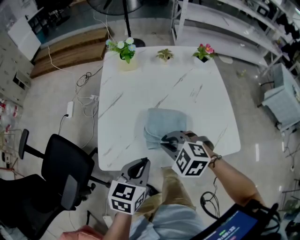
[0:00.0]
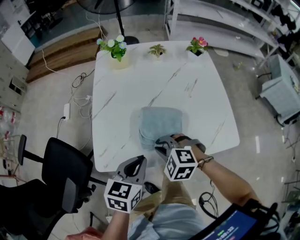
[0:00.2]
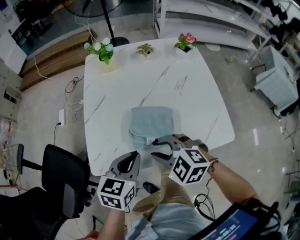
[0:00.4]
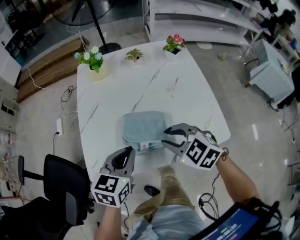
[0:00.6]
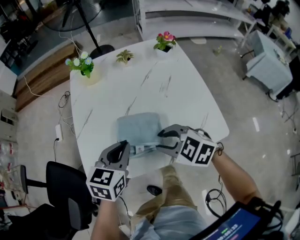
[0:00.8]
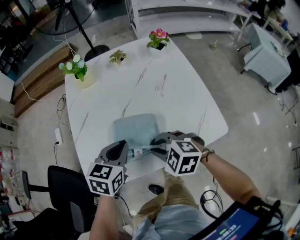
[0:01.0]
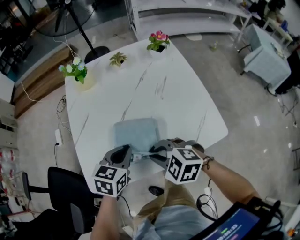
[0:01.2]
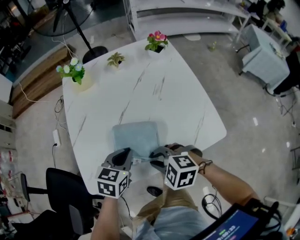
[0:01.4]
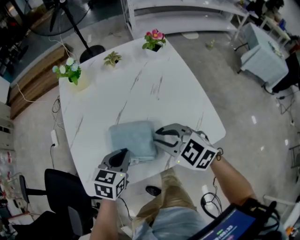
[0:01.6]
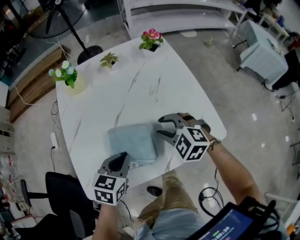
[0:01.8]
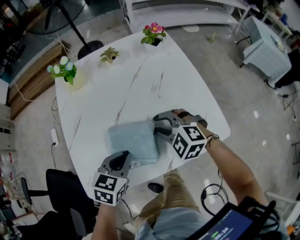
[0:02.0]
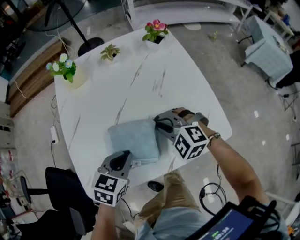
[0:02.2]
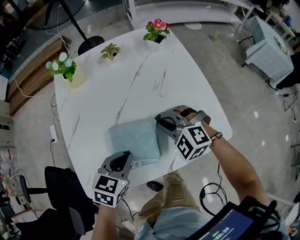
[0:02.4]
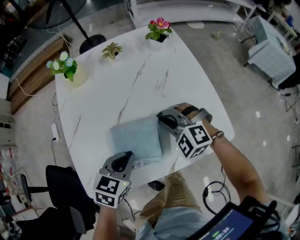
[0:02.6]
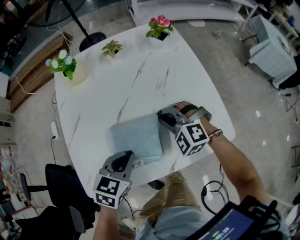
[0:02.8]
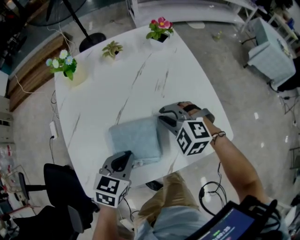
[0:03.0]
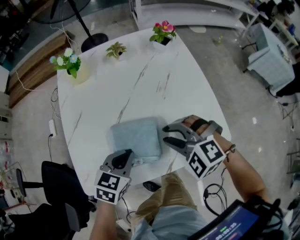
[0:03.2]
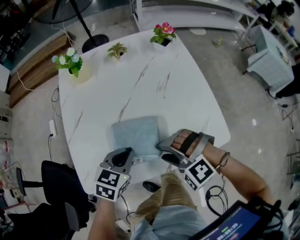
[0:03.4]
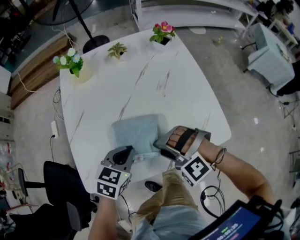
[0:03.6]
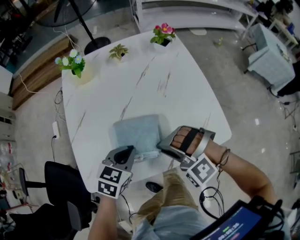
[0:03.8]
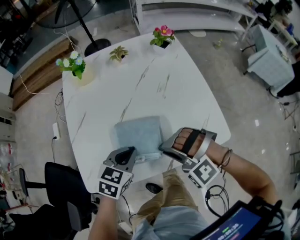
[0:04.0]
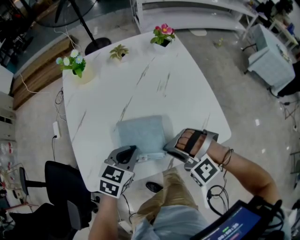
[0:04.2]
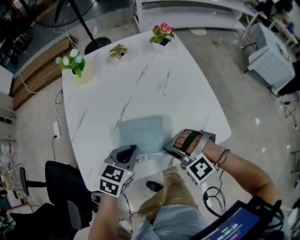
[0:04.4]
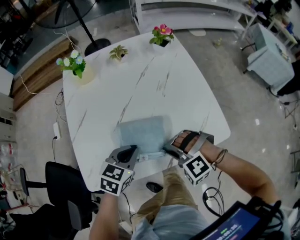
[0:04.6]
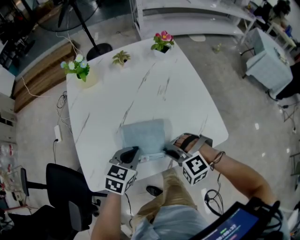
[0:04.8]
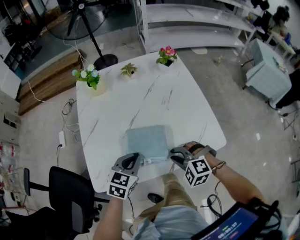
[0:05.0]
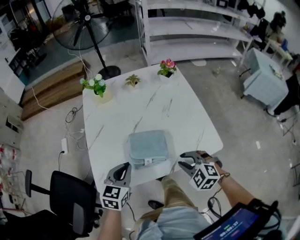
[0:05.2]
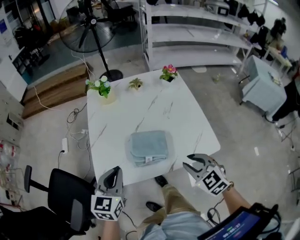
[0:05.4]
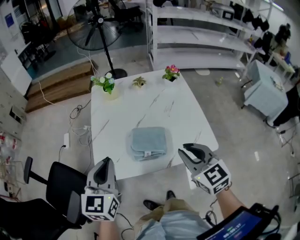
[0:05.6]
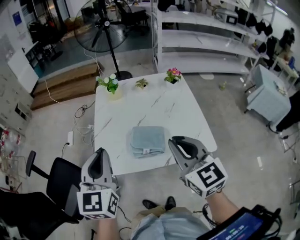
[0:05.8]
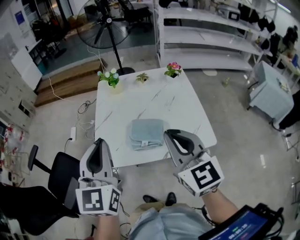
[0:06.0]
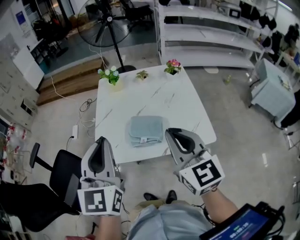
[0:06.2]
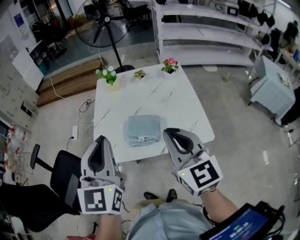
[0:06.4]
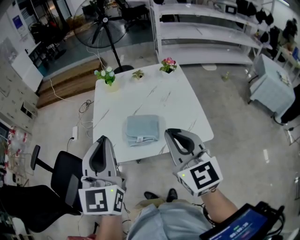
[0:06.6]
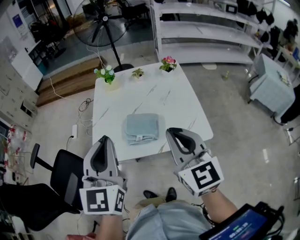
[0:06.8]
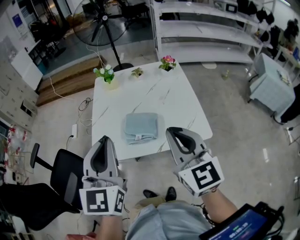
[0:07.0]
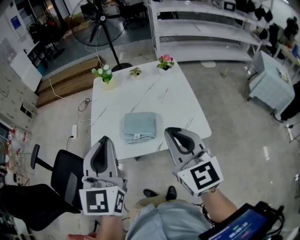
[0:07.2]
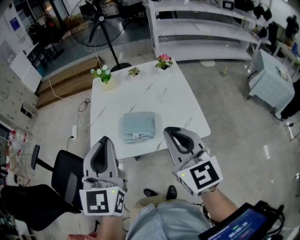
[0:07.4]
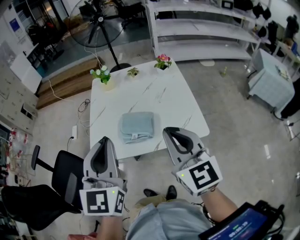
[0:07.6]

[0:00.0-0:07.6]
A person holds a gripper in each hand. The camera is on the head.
0:00.0 to 0:01.6: The right gripper shifts approximately 10 cm to the right, and turns by some 30 degrees; the left gripper goes about 10 cm forward, to the right and downward.
0:01.6 to 0:03.0: The right gripper goes approximately 10 cm forward and downward, and turns by some 30 degrees.
0:03.0 to 0:04.6: The right gripper shifts approximately 15 cm backward, rotates about 30 degrees, and opens, then closes again.
0:04.6 to 0:06.0: Both grippers travel together upward, approximately 35 cm. The left gripper tips its fingers upward by approximately 40 degrees. The right gripper tips its fingers upward by approximately 50 degrees, and opens, then closes again.
0:06.0 to 0:07.6: The grippers both shift to the right by approximately 5 cm.

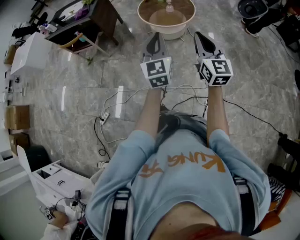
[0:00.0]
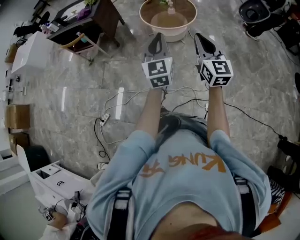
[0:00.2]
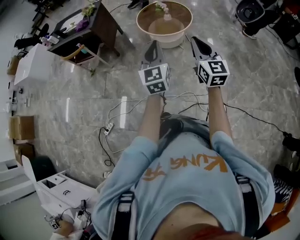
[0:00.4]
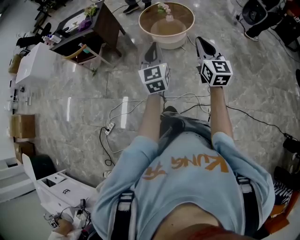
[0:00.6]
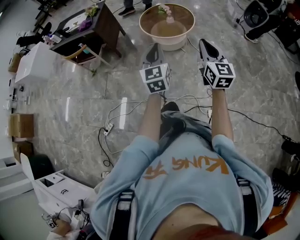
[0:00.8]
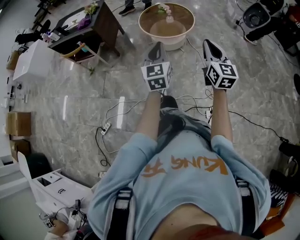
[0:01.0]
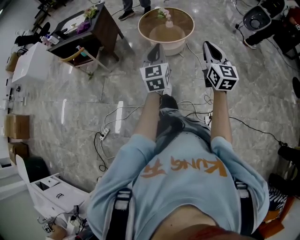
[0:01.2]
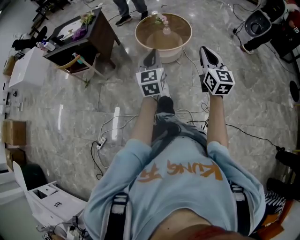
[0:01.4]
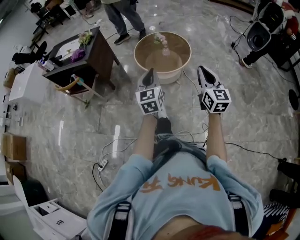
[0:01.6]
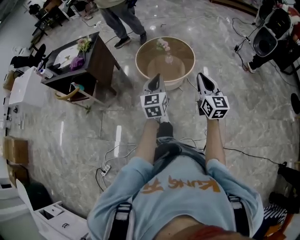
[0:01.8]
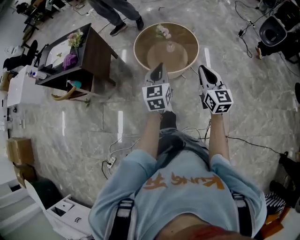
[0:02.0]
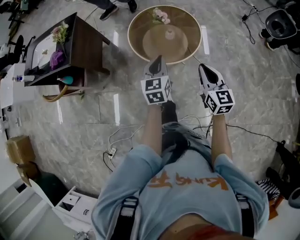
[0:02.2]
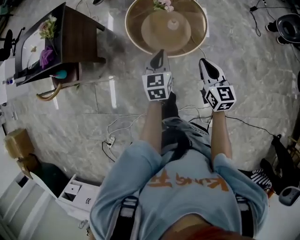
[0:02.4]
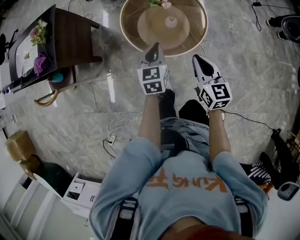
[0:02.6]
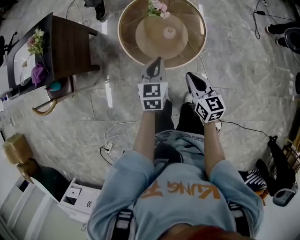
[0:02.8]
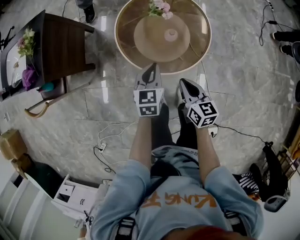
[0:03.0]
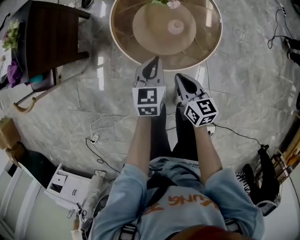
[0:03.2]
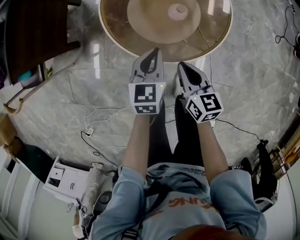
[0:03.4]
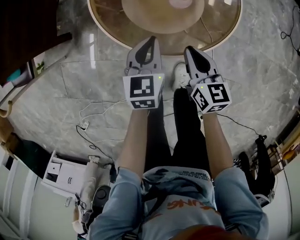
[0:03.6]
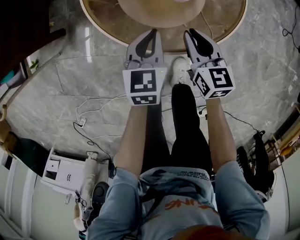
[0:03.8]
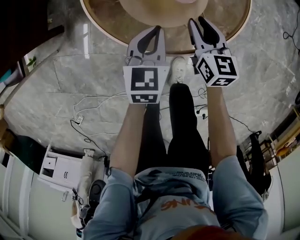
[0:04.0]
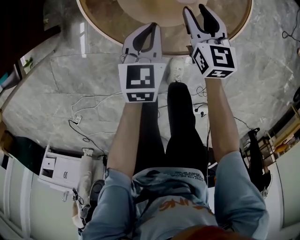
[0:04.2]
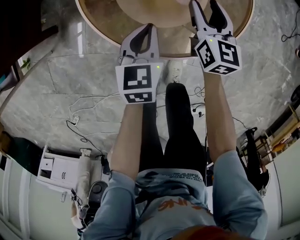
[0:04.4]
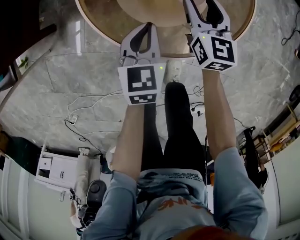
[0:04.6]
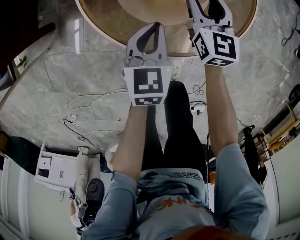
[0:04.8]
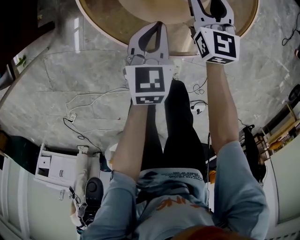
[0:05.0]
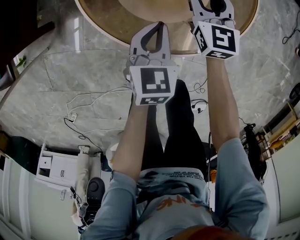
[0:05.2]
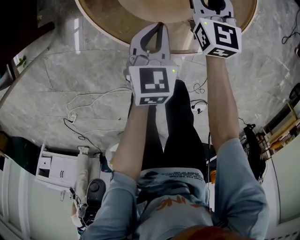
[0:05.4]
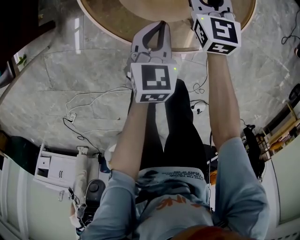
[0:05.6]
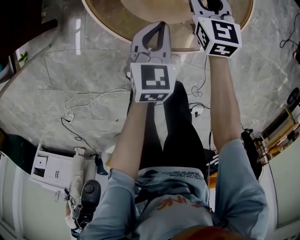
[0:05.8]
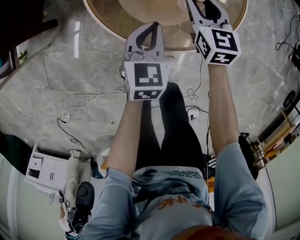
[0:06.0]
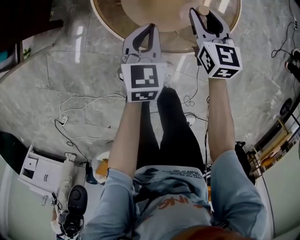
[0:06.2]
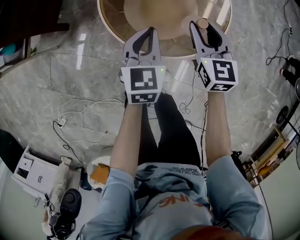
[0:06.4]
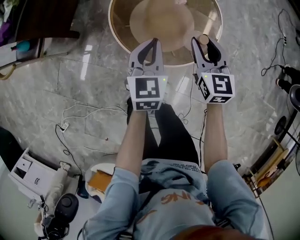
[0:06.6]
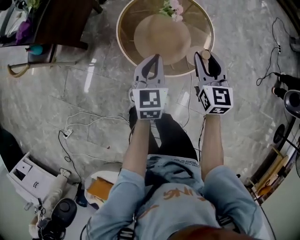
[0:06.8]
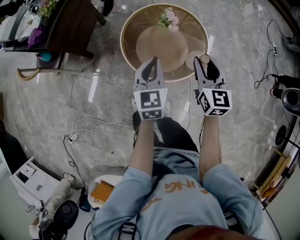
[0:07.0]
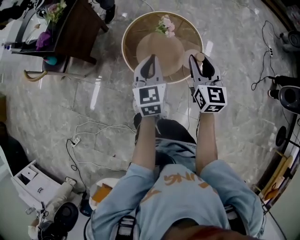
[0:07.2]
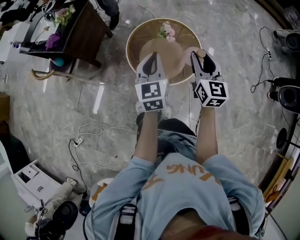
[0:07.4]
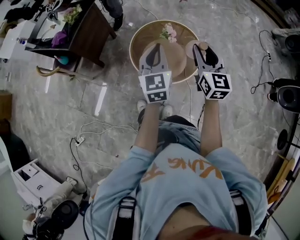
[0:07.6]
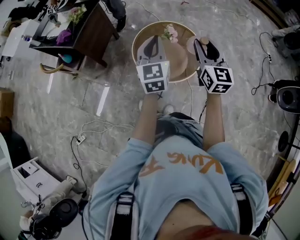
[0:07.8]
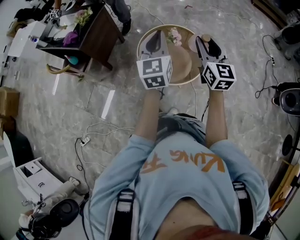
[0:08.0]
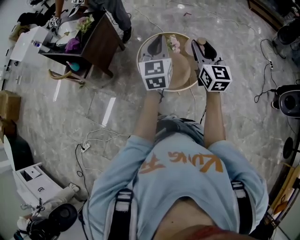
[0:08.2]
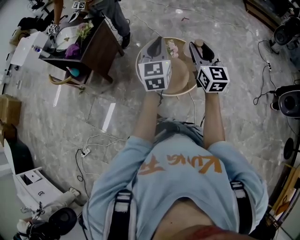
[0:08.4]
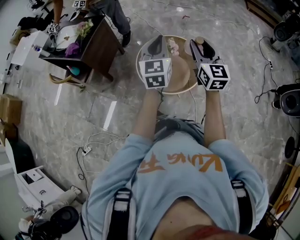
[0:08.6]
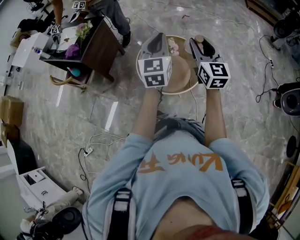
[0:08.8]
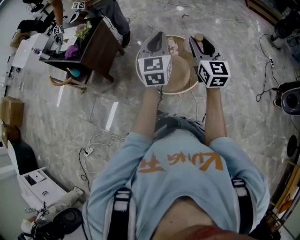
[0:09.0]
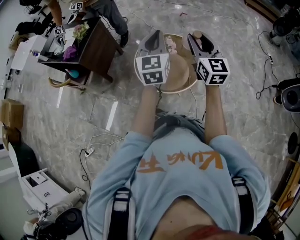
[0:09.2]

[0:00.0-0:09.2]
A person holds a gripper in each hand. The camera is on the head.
0:00.0 to 0:01.6: Both grippers travel together forward, about 20 cm.
0:01.6 to 0:03.0: The two grippers go about 50 cm forward and downward. The left gripper changes its angle by roughly 30 degrees. Meanwhile the right gripper turns by some 40 degrees.
0:03.0 to 0:04.6: The left gripper moves downward, some 25 cm. Meanwhile the right gripper shifts approximately 35 cm forward and downward, changes its angle by some 20 degrees, and opens.
0:04.6 to 0:06.2: The left gripper shifts some 5 cm upward. The right gripper heads upward and backward, covering some 10 cm.
0:06.2 to 0:07.6: Both grippers move upward, about 50 cm. The right gripper changes its angle by about 20 degrees. The left gripper swivels about 30 degrees.
0:07.6 to 0:09.2: Both grippers move upward, approximately 10 cm.

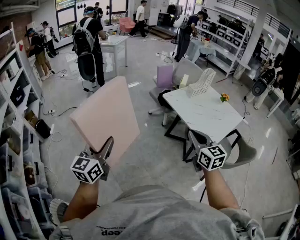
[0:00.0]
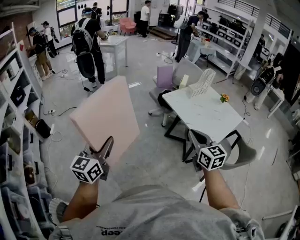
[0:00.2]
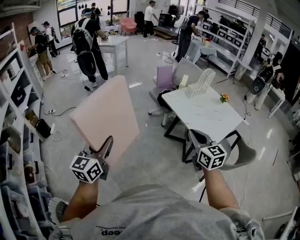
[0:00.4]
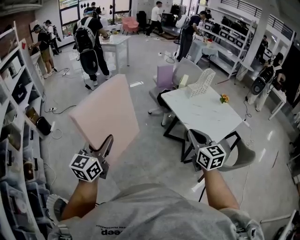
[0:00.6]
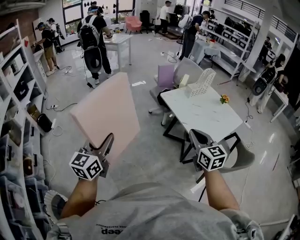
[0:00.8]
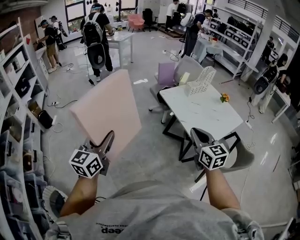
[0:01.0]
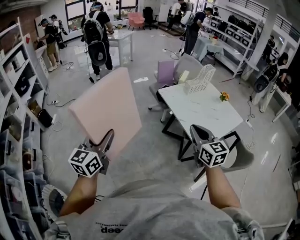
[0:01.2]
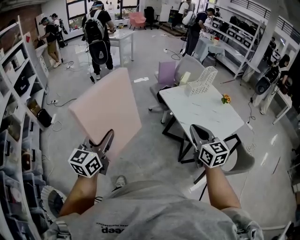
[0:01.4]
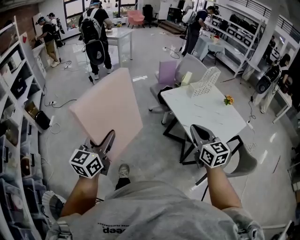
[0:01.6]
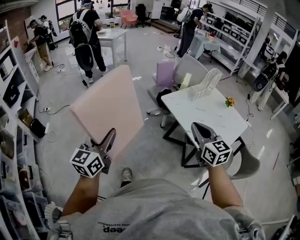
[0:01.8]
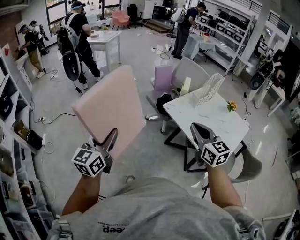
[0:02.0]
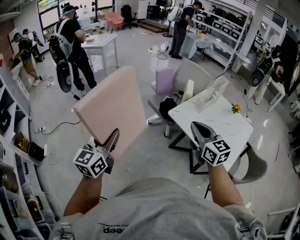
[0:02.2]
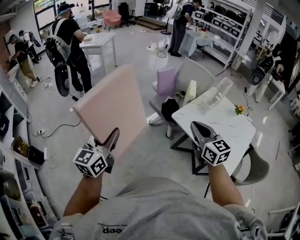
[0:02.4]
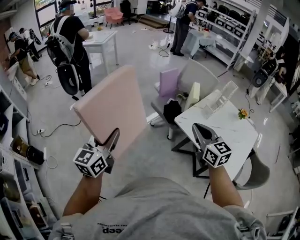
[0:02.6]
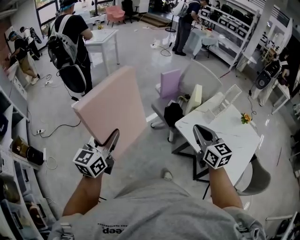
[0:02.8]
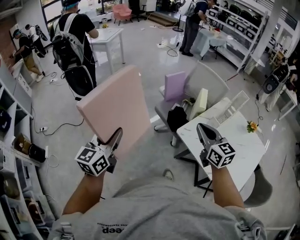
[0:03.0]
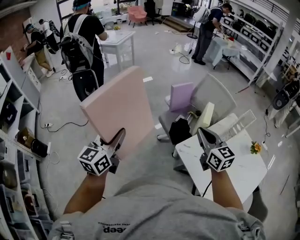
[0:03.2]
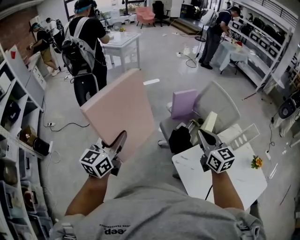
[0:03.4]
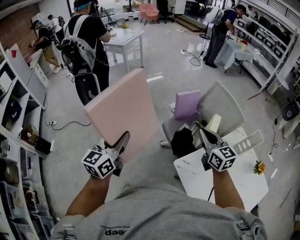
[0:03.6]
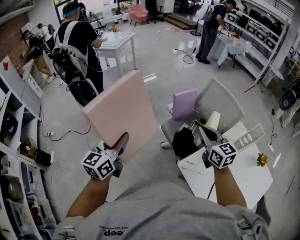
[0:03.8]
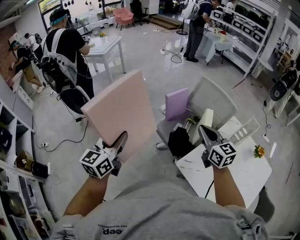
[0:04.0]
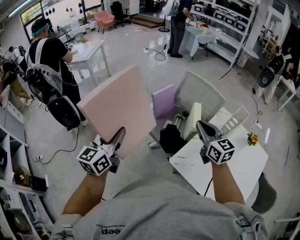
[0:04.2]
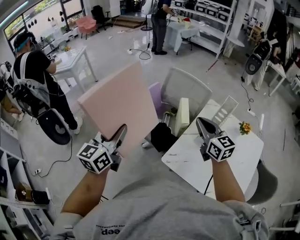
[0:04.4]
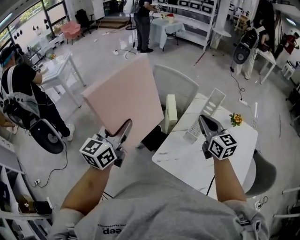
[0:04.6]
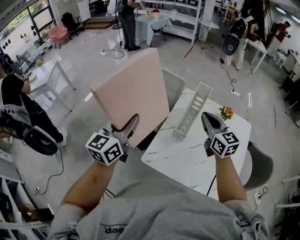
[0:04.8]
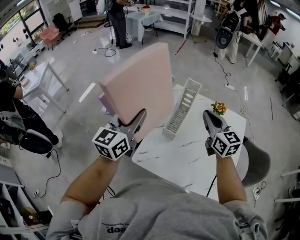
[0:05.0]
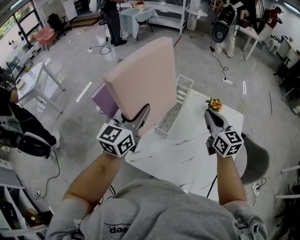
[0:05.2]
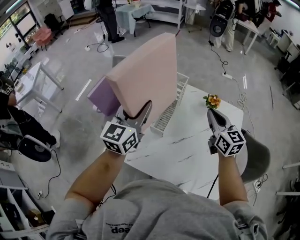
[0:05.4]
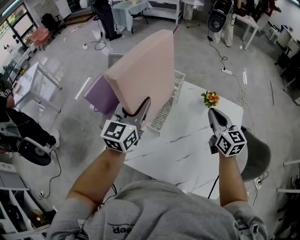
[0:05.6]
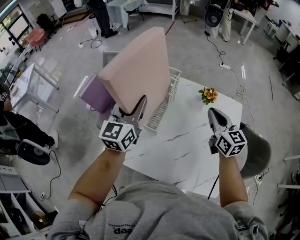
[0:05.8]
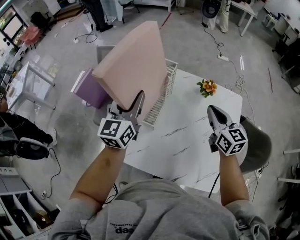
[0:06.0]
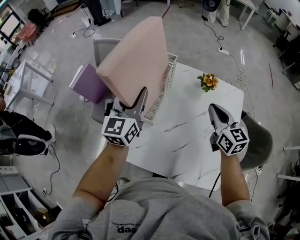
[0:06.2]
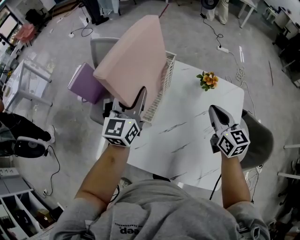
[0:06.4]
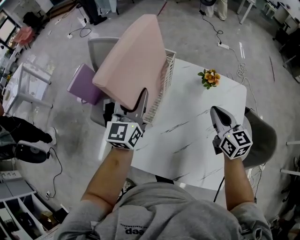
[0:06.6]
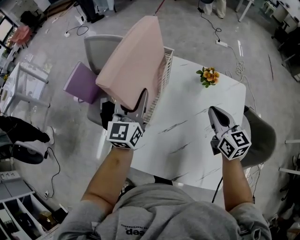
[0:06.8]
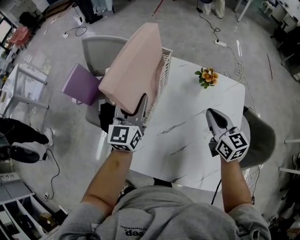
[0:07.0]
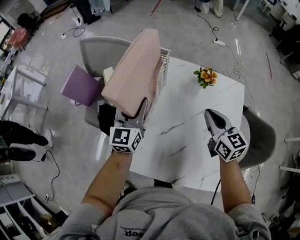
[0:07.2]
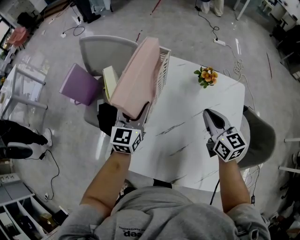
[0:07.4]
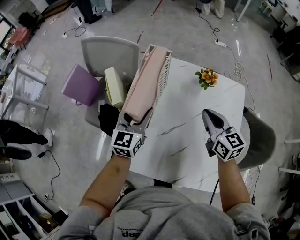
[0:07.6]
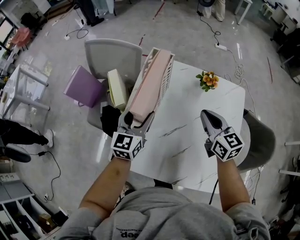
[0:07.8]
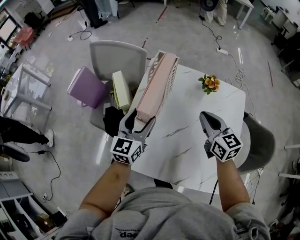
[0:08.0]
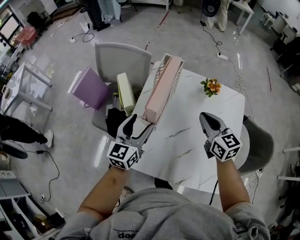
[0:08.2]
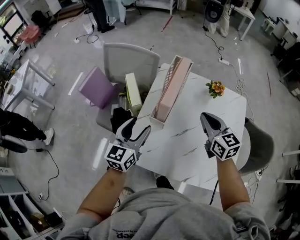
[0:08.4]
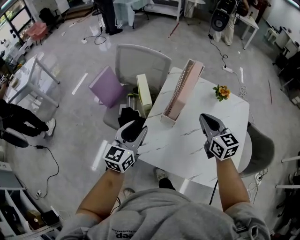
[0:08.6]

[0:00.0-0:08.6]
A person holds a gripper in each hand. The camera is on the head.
0:00.0 to 0:01.4: Both grippers travel together to the right, about 10 cm.
0:01.4 to 0:02.8: Both grippers are carried forward, approximately 50 cm.
0:02.8 to 0:04.4: The grippers both shift forward and to the right by roughly 35 cm.
0:04.4 to 0:05.8: The pair of grippers is taken to the right, about 40 cm. The right gripper turns by about 30 degrees.
0:05.8 to 0:07.2: The left gripper goes approximately 15 cm downward. The right gripper goes approximately 10 cm downward.
0:07.2 to 0:08.6: The left gripper travels to the left and backward by roughly 25 cm, while the right gripper is displaced to the left by roughly 15 cm.
